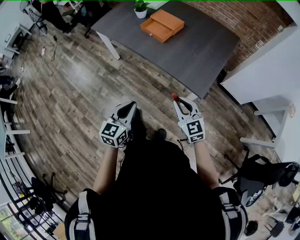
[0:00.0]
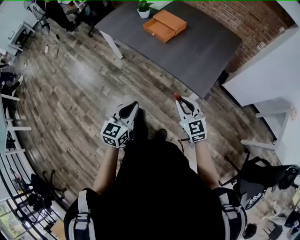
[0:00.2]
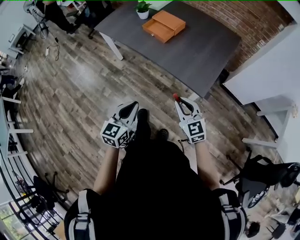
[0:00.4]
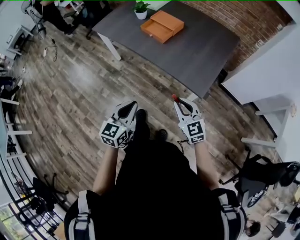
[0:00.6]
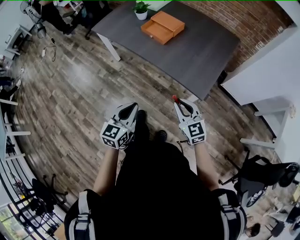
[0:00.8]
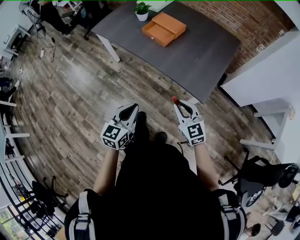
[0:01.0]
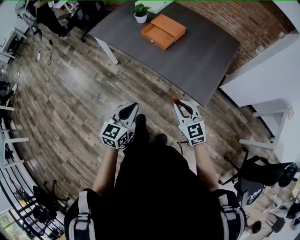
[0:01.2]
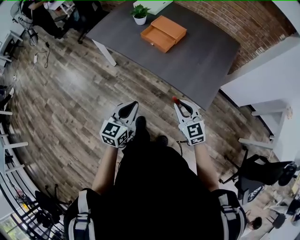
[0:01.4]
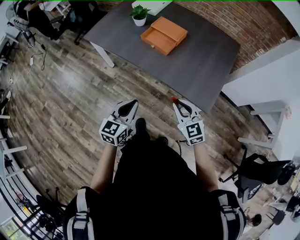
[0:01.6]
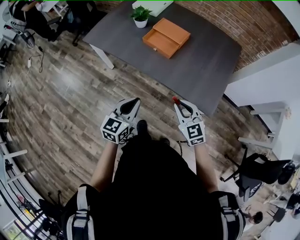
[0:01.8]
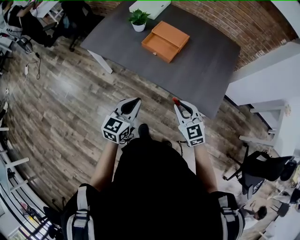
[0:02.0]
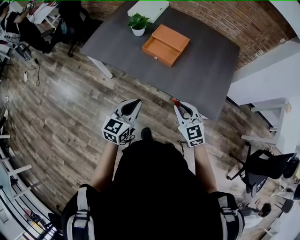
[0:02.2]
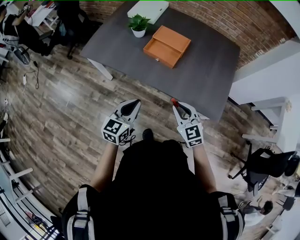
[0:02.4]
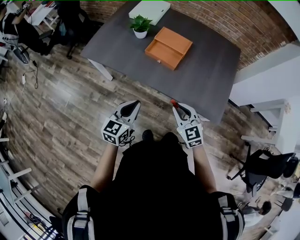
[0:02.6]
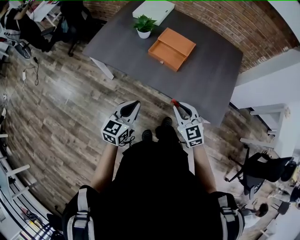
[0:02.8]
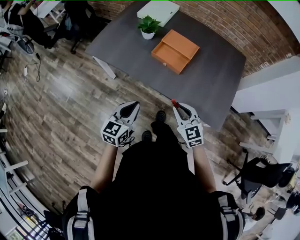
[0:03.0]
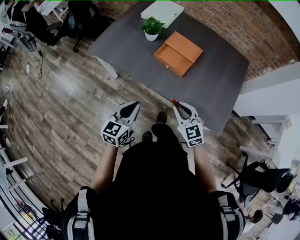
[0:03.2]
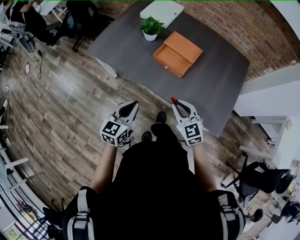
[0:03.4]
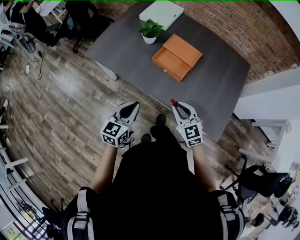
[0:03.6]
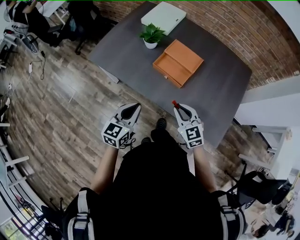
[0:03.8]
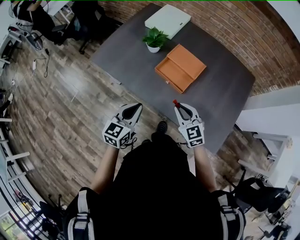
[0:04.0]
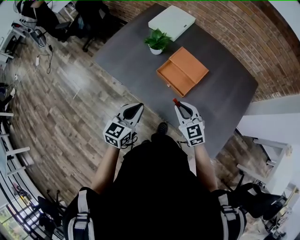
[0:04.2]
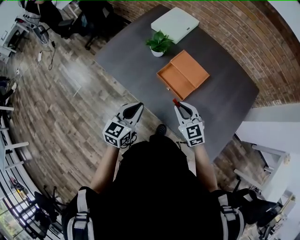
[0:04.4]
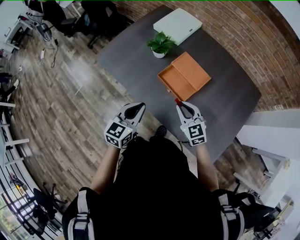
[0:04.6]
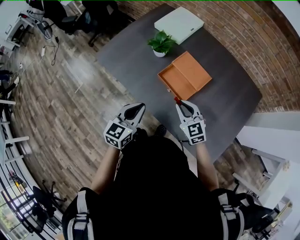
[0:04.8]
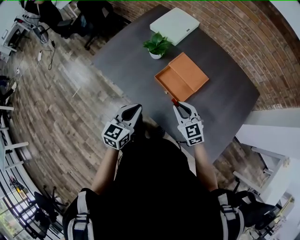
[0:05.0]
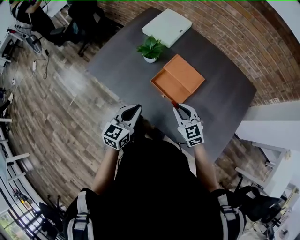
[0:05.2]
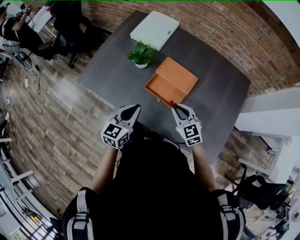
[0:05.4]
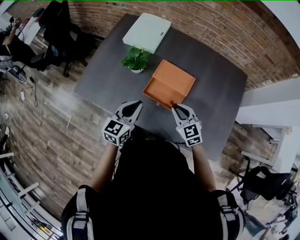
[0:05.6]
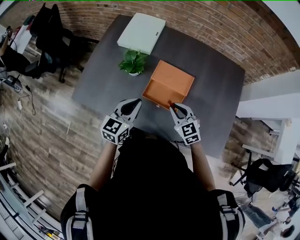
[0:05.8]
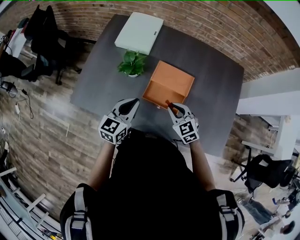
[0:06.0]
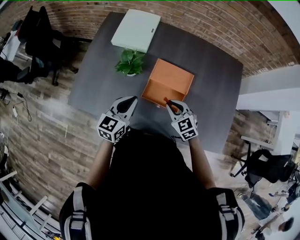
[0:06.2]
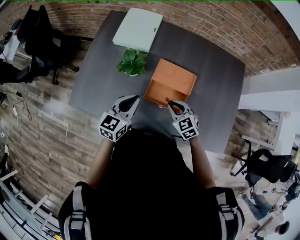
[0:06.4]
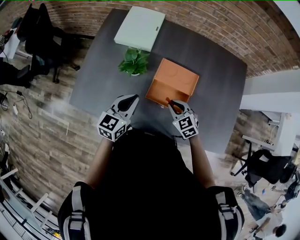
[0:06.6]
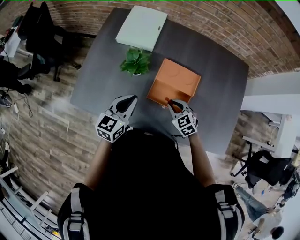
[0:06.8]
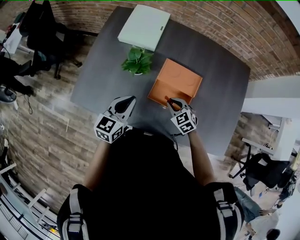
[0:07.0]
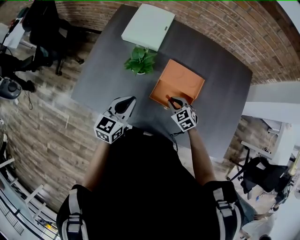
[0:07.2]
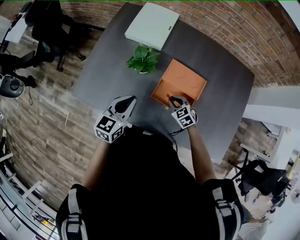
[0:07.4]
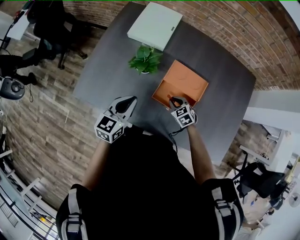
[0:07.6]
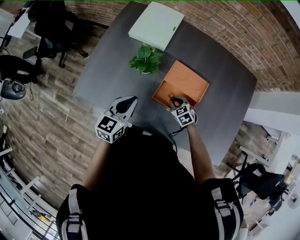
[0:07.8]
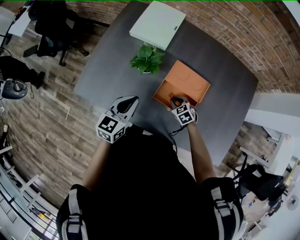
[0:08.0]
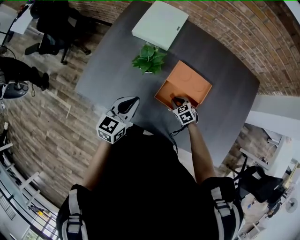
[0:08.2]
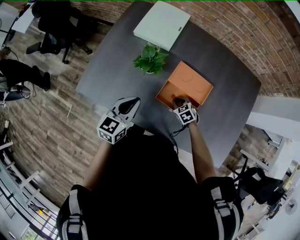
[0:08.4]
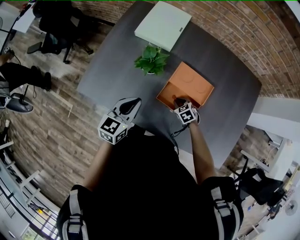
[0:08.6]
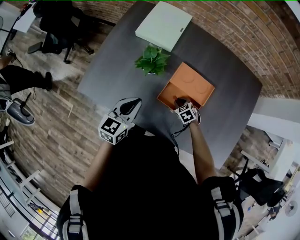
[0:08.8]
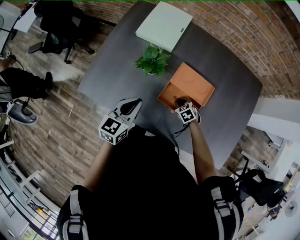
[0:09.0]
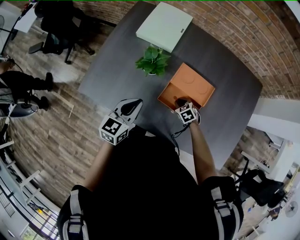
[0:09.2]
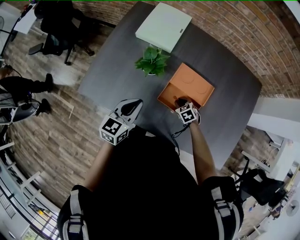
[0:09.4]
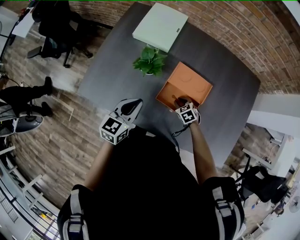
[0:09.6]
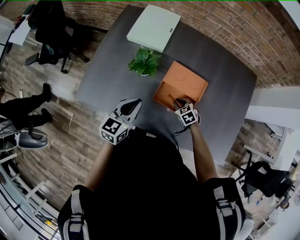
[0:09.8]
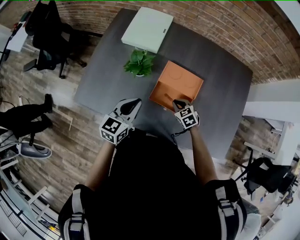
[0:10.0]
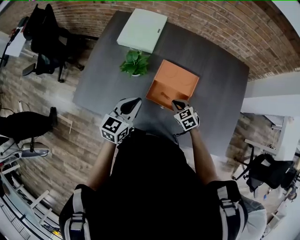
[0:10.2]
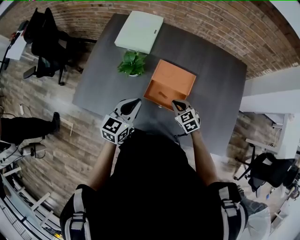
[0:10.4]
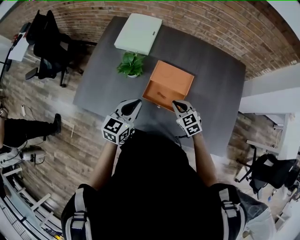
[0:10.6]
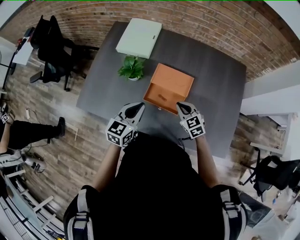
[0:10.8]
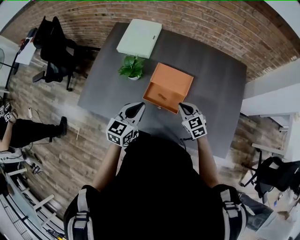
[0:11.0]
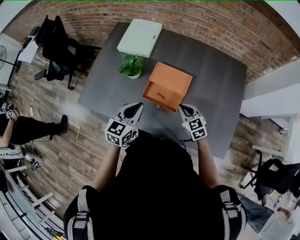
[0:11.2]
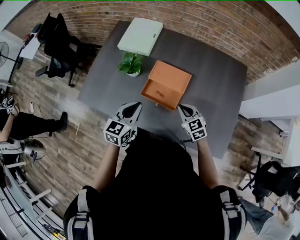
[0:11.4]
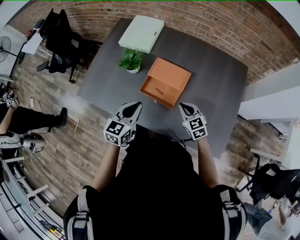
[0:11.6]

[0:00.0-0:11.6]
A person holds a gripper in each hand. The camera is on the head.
0:00.0 to 0:01.4: The two grippers go approximately 10 cm forward and to the left.
0:01.4 to 0:02.8: The right gripper is displaced to the left and forward by some 20 cm. Meanwhile the left gripper is displaced forward and to the left by roughly 25 cm.
0:02.8 to 0:04.4: The grippers both shift forward by about 20 cm.
0:04.4 to 0:05.8: The right gripper moves forward, some 10 cm; the left gripper shifts roughly 20 cm forward, and swivels roughly 20 degrees.
0:05.8 to 0:07.2: The left gripper goes about 5 cm to the left, while the right gripper shifts roughly 15 cm downward and forward.
0:07.2 to 0:08.8: The right gripper goes some 10 cm downward.
0:08.8 to 0:10.2: The left gripper travels to the right by roughly 5 cm. Meanwhile the right gripper travels upward by roughly 10 cm.
0:10.2 to 0:11.6: The left gripper travels to the right and backward by approximately 10 cm. Meanwhile the right gripper heads to the right, upward and backward, covering approximately 15 cm.

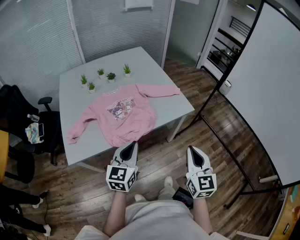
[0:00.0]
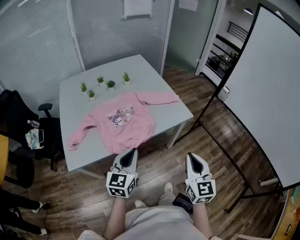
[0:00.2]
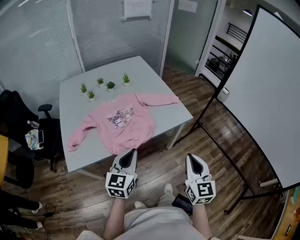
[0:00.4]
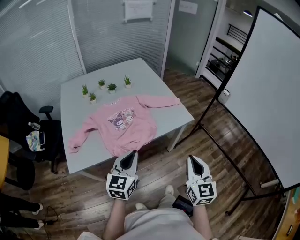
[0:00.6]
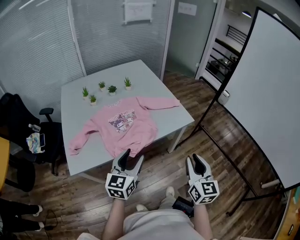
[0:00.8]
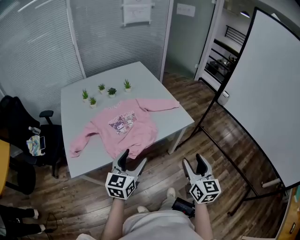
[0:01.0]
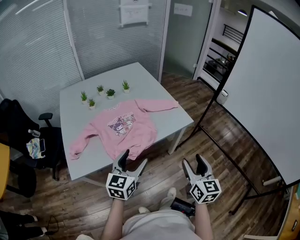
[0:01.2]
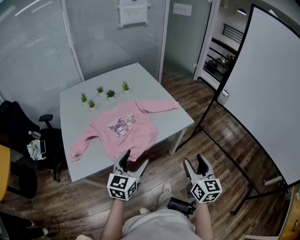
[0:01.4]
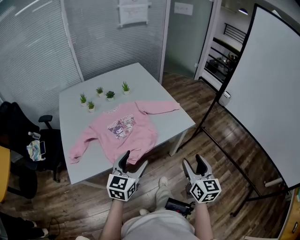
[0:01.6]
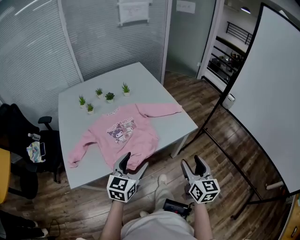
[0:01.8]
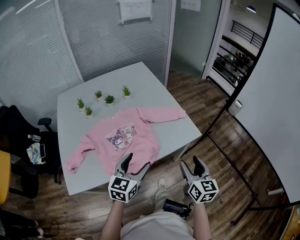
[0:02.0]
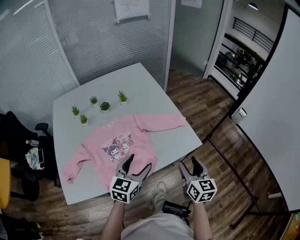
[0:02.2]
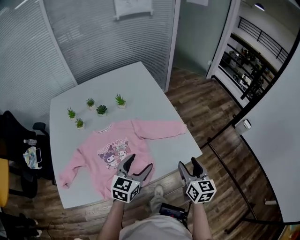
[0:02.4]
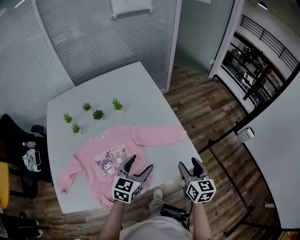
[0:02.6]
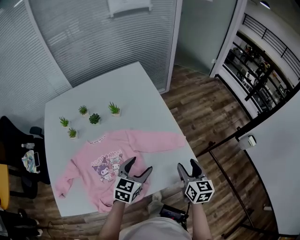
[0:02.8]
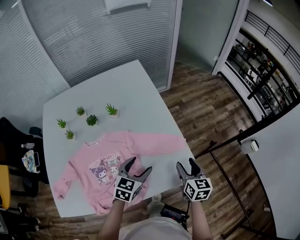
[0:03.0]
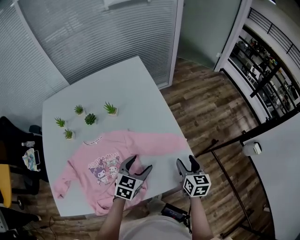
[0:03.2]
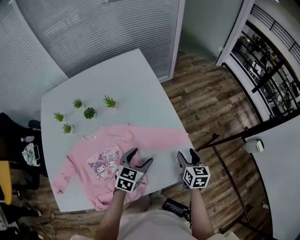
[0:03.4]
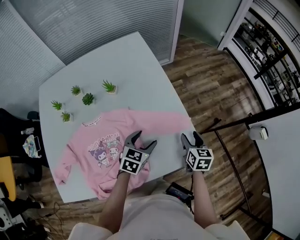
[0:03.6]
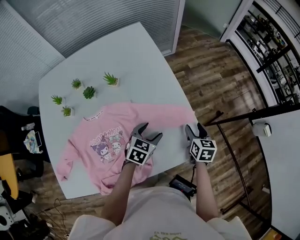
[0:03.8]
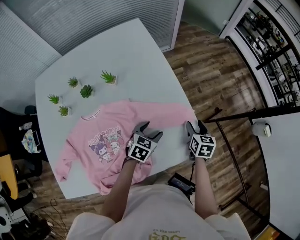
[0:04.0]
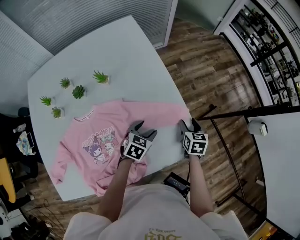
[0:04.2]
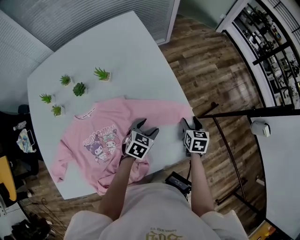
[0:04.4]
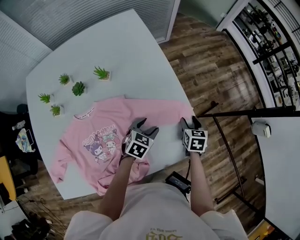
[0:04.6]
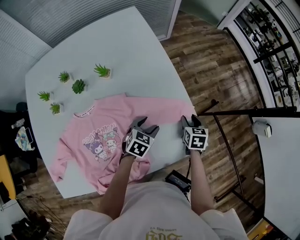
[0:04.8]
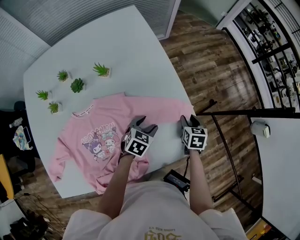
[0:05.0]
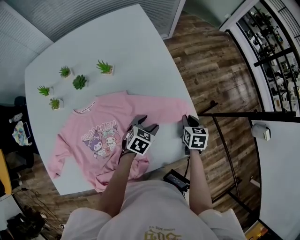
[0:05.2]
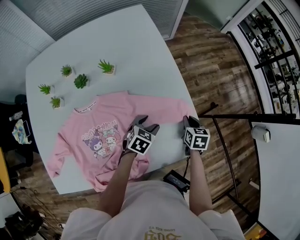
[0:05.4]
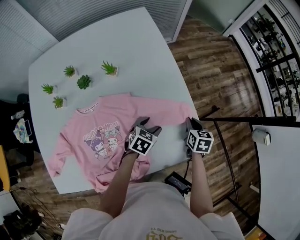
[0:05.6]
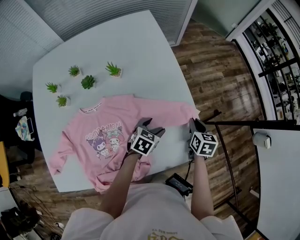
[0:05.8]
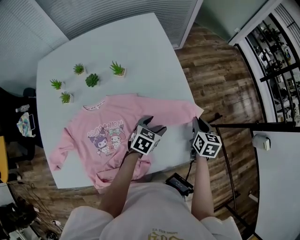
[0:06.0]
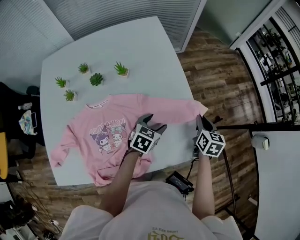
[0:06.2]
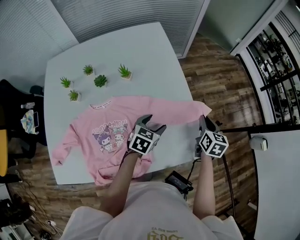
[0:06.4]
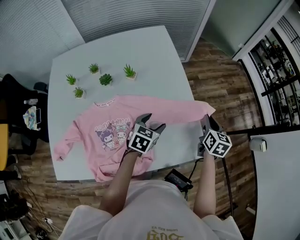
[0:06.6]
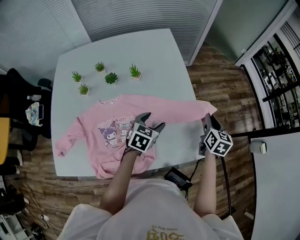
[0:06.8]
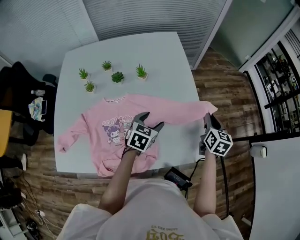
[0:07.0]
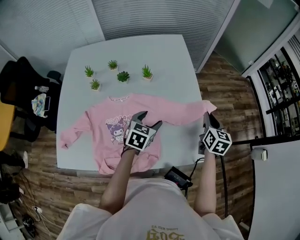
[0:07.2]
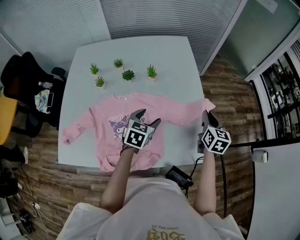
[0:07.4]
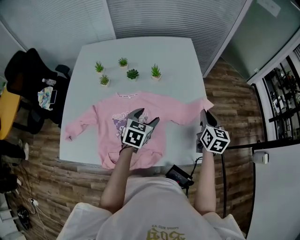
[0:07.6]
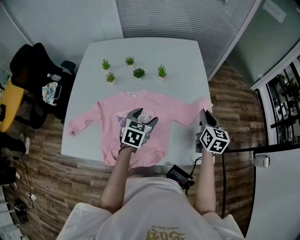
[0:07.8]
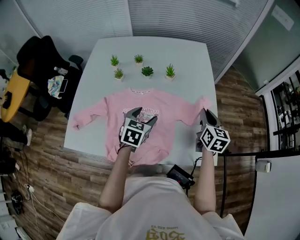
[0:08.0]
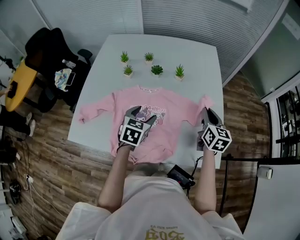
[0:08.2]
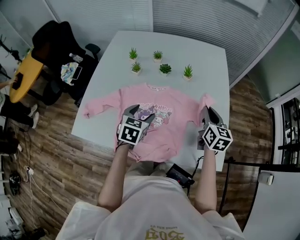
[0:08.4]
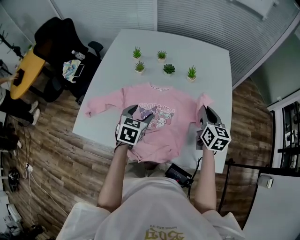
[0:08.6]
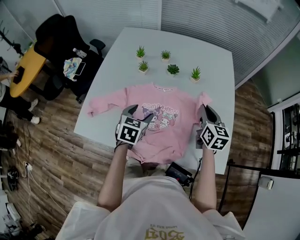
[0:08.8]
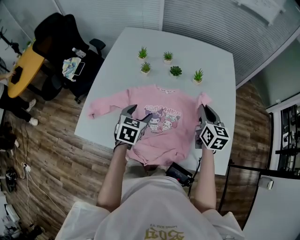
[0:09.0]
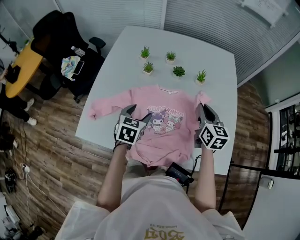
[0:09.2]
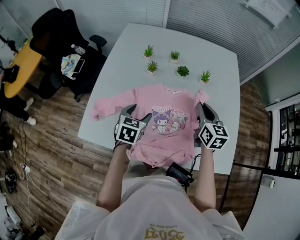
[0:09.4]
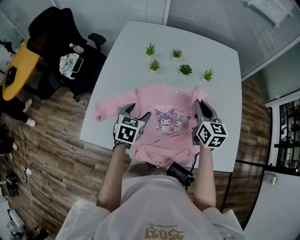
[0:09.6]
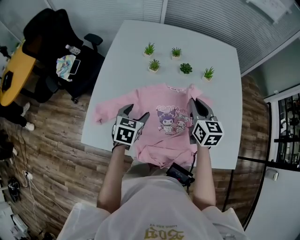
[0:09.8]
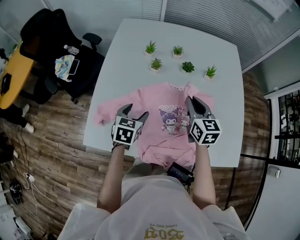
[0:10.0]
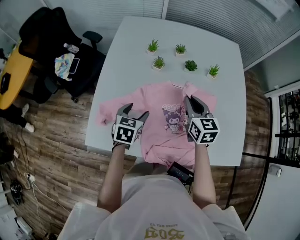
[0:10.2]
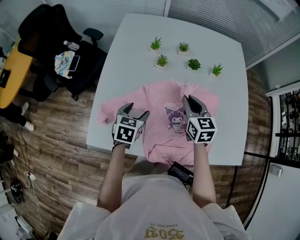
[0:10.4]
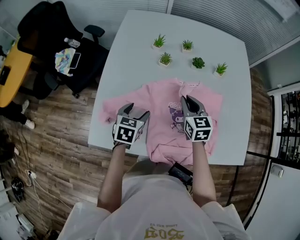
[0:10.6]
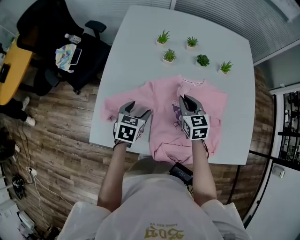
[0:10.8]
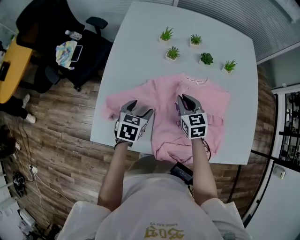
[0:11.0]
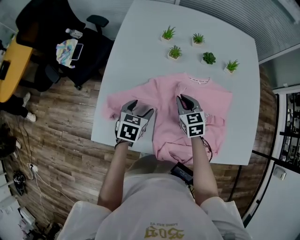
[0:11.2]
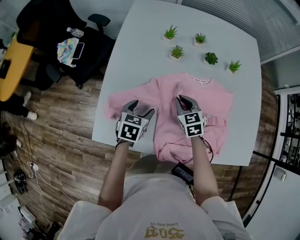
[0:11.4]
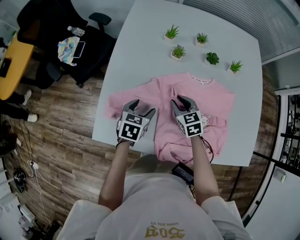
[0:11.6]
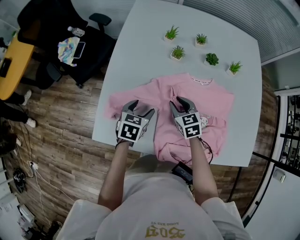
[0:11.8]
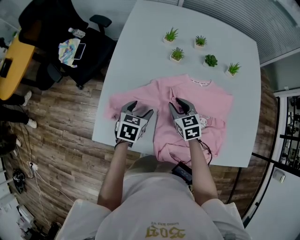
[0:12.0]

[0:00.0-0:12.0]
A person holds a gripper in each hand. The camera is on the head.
0:00.0 to 0:01.6: The right gripper opens. Meanwhile the left gripper opens.
0:01.6 to 0:03.0: Both grippers travel together forward, some 40 cm. The left gripper rotates roughly 20 degrees.
0:03.0 to 0:04.4: Both grippers travel together downward and forward, some 15 cm. The right gripper turns by roughly 20 degrees.
0:04.4 to 0:06.0: The right gripper is displaced upward by approximately 5 cm, and closes its fingers.
0:06.0 to 0:07.6: The left gripper travels to the left, upward and backward by some 20 cm, and turns by about 30 degrees; the right gripper heads upward and to the left, covering some 15 cm, and turns by roughly 20 degrees.
0:07.6 to 0:09.0: Both grippers travel together to the left, some 20 cm. The right gripper changes its angle by some 20 degrees.
0:09.0 to 0:10.4: The left gripper moves to the left and downward, roughly 15 cm. The right gripper travels to the left by approximately 20 cm.
0:10.4 to 0:12.0: The right gripper goes approximately 15 cm downward and to the left, and opens up. Meanwhile the left gripper moves roughly 5 cm.
